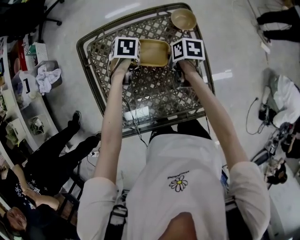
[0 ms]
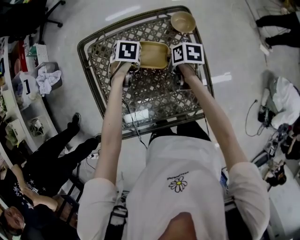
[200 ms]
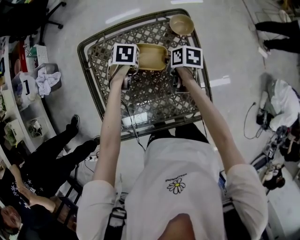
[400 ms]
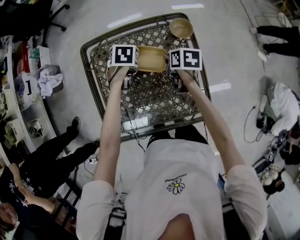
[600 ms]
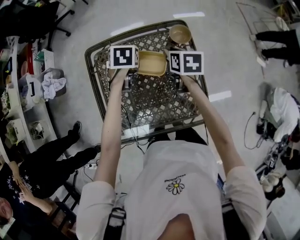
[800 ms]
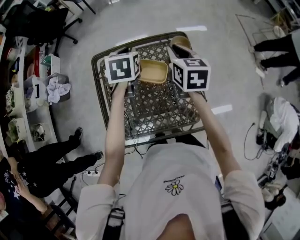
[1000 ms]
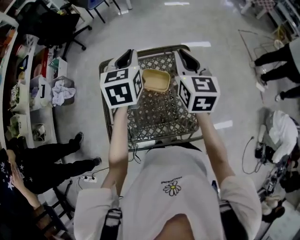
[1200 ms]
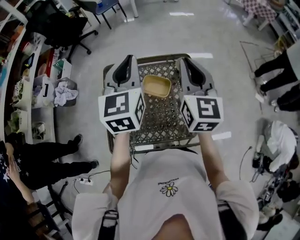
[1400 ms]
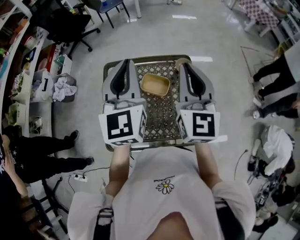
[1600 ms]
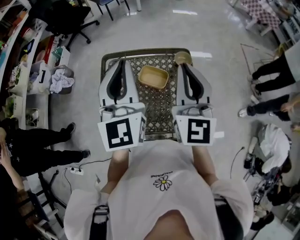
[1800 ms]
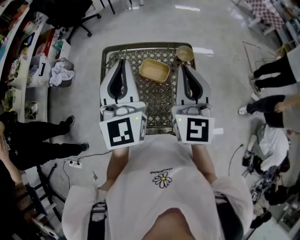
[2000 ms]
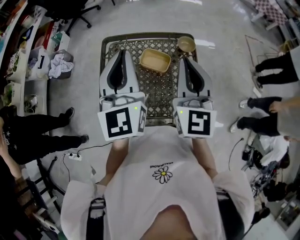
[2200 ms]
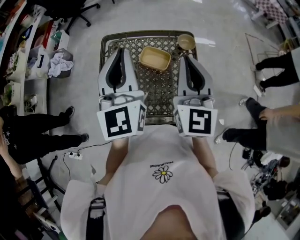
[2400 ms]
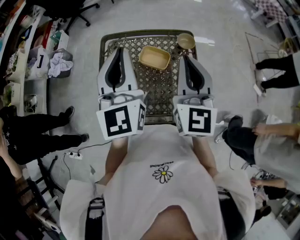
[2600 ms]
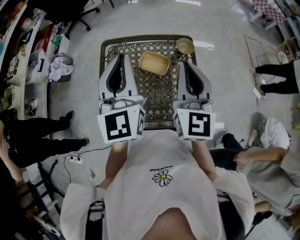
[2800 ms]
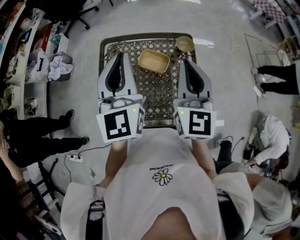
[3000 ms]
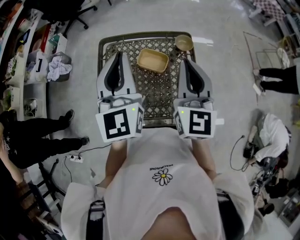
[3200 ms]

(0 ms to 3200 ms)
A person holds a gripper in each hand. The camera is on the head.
0 ms - 1600 ms: Both grippers travel together upward, about 50 cm. The left gripper tilts its fingers roughly 80 degrees upward. The right gripper tips its fingers upward by approximately 60 degrees.
1600 ms - 3200 ms: The right gripper shifts by some 5 cm. The left gripper shifts by about 5 cm.

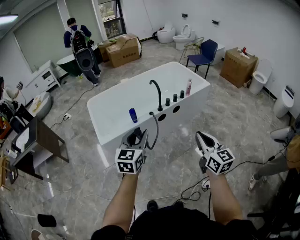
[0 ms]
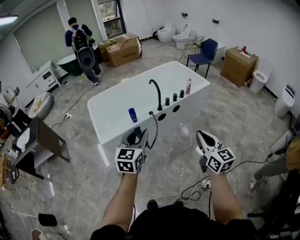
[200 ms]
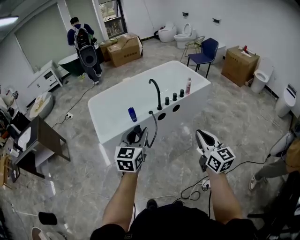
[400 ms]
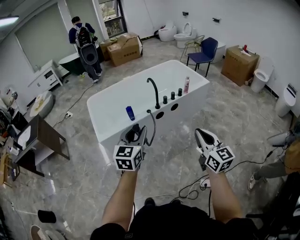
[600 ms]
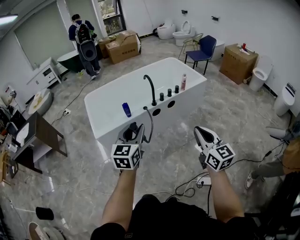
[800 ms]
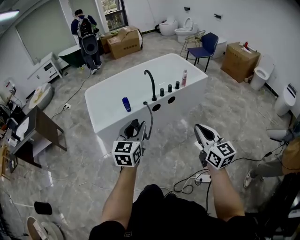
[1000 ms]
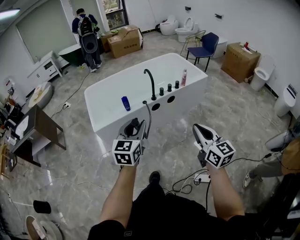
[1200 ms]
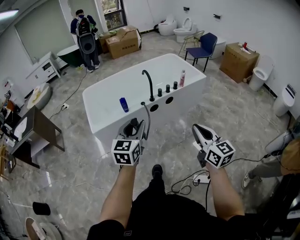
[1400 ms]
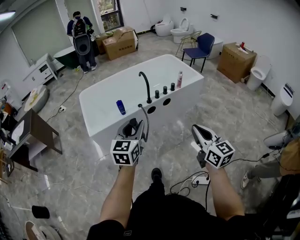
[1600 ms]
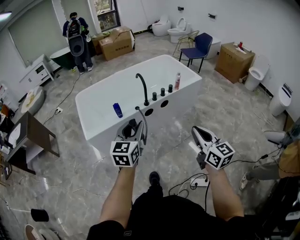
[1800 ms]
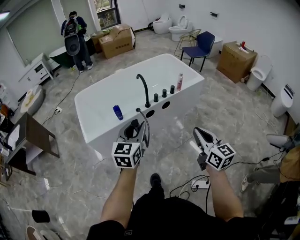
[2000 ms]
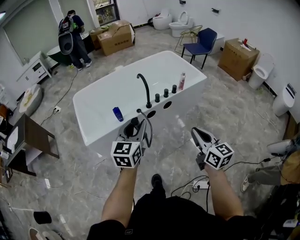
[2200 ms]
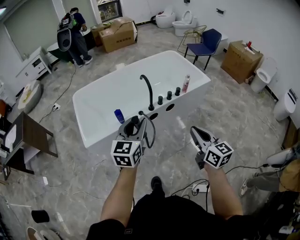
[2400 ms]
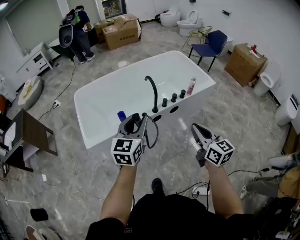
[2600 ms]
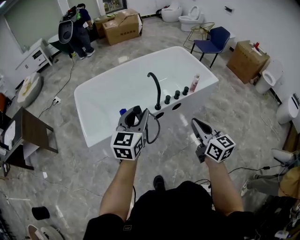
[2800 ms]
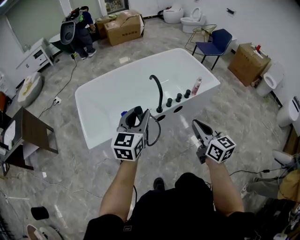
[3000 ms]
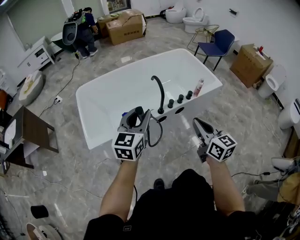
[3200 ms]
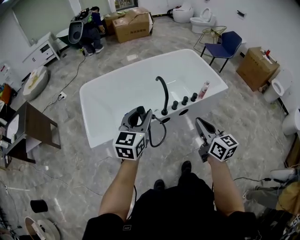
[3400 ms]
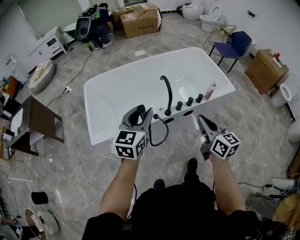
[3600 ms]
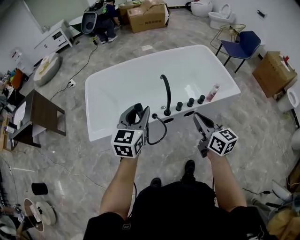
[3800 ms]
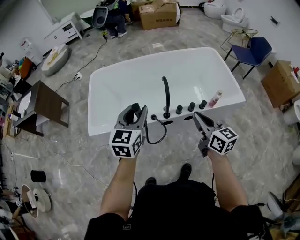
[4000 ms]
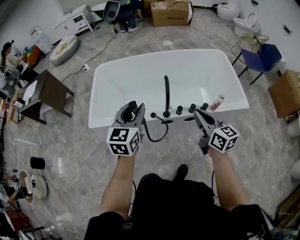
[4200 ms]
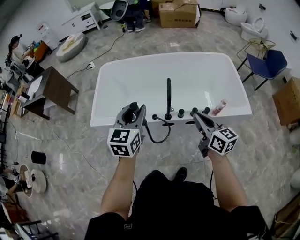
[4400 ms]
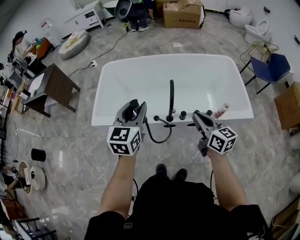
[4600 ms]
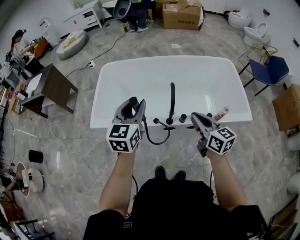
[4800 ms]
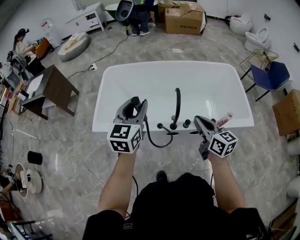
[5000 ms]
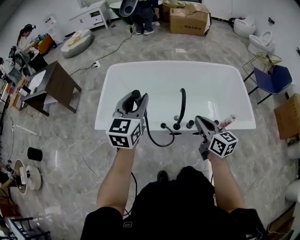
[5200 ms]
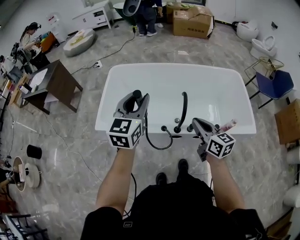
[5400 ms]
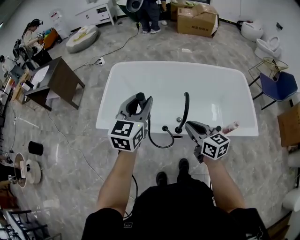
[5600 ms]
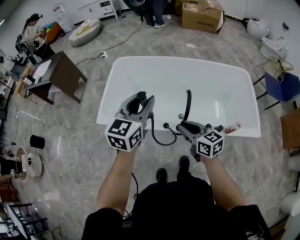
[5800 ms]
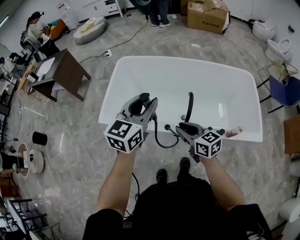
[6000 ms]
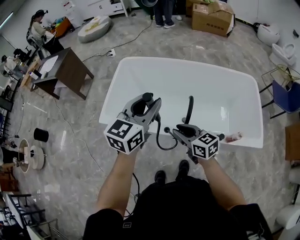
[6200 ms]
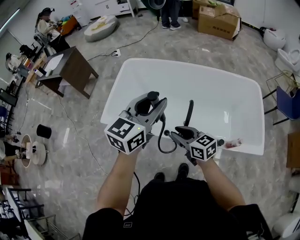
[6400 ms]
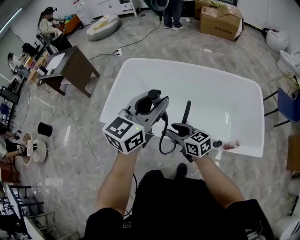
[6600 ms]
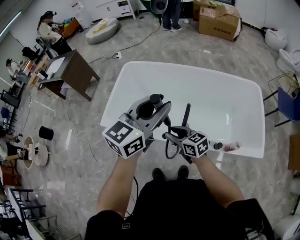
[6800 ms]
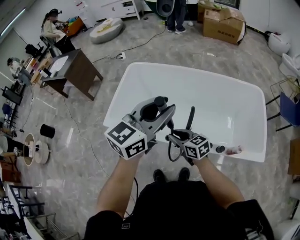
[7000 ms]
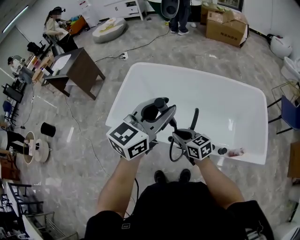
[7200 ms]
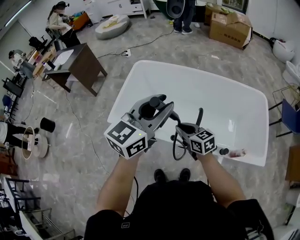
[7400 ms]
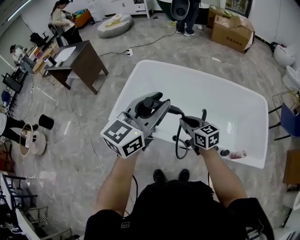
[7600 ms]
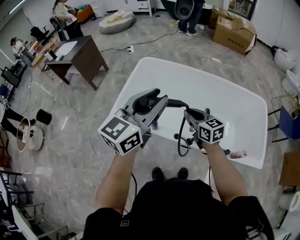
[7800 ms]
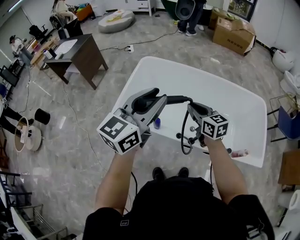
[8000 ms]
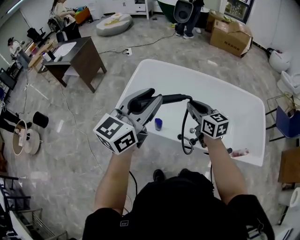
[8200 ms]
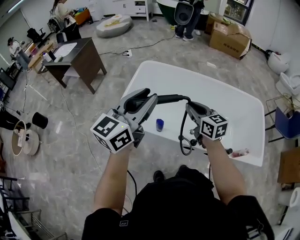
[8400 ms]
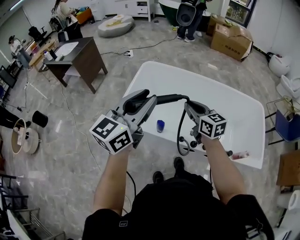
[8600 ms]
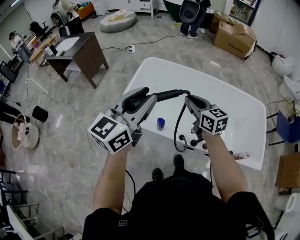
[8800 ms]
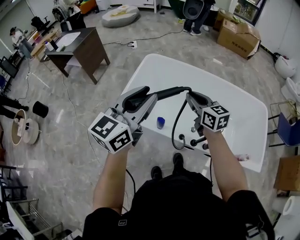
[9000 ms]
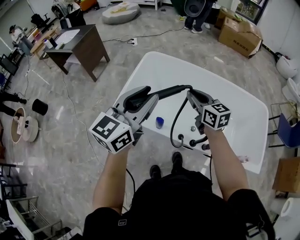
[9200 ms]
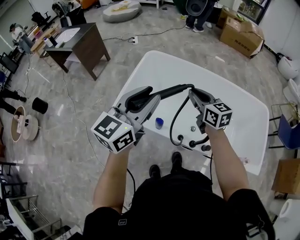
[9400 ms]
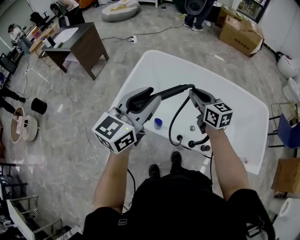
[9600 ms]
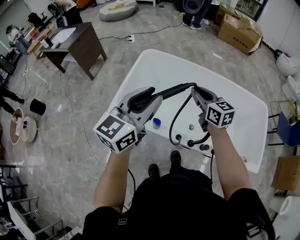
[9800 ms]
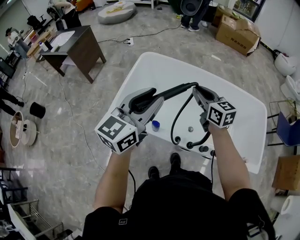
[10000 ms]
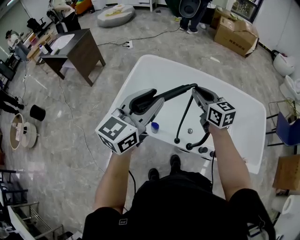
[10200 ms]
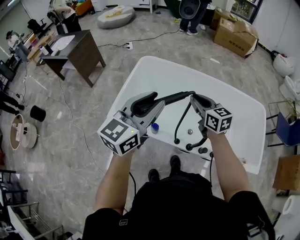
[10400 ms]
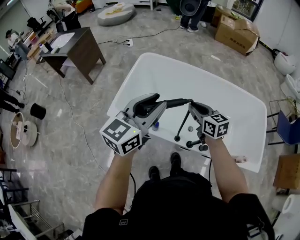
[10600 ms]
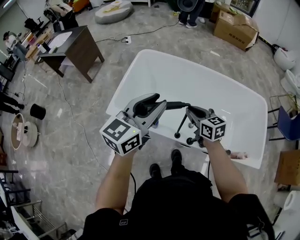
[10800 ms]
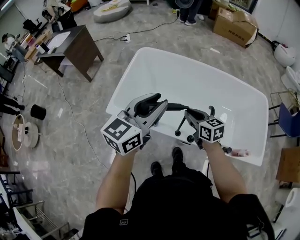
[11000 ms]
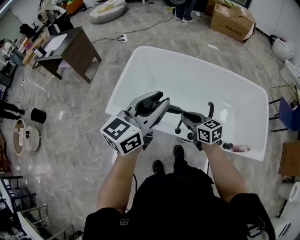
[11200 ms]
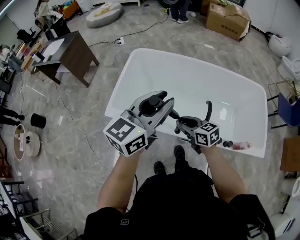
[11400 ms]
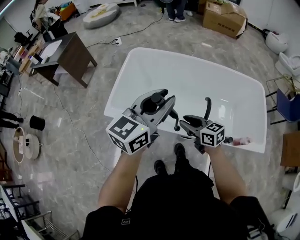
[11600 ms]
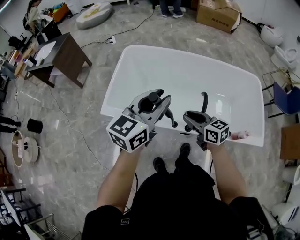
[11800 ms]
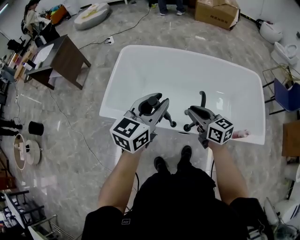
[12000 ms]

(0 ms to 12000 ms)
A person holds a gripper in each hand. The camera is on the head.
0 ms - 1600 ms: The grippers both shift to the right by roughly 5 cm.
1600 ms - 3000 ms: The two grippers go roughly 25 cm forward.
3000 ms - 4400 ms: The left gripper ends up roughly 10 cm from where it was, and turns by some 30 degrees, while the right gripper changes place by about 20 cm, and swivels approximately 30 degrees.
4400 ms - 6000 ms: The left gripper shifts approximately 10 cm forward. The right gripper heads to the left, forward and downward, covering approximately 15 cm, and rotates roughly 30 degrees.
6000 ms - 7600 ms: The left gripper shifts roughly 10 cm upward, and goes to the right and returns, about 10 cm each way; the right gripper shifts about 10 cm forward.
7600 ms - 9000 ms: The left gripper moves to the left, roughly 15 cm; the right gripper heads upward, forward and to the left, covering about 15 cm.
9000 ms - 10400 ms: The right gripper shifts by about 5 cm. The left gripper goes roughly 5 cm to the right.
10400 ms - 12000 ms: The right gripper is displaced backward and downward by roughly 15 cm. The left gripper goes about 10 cm downward and to the right.

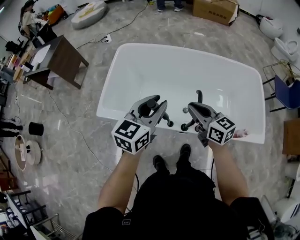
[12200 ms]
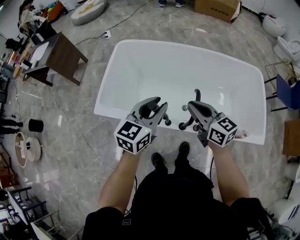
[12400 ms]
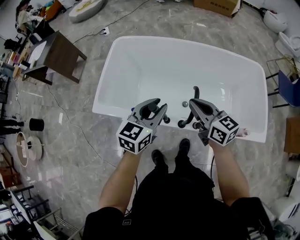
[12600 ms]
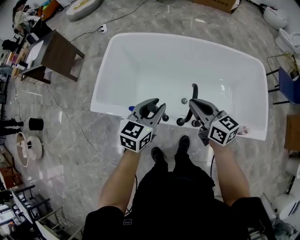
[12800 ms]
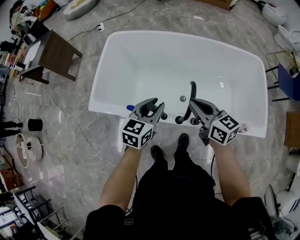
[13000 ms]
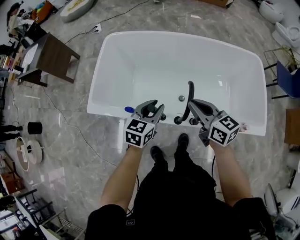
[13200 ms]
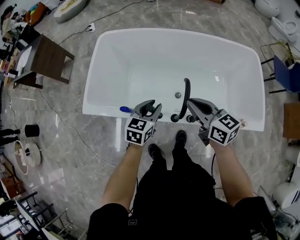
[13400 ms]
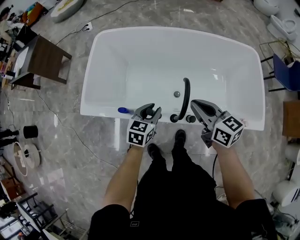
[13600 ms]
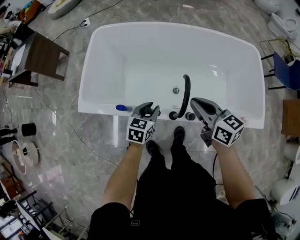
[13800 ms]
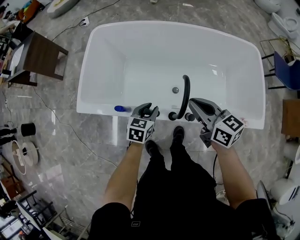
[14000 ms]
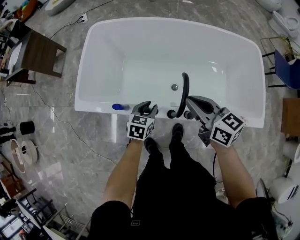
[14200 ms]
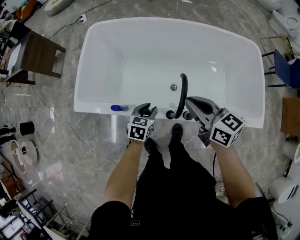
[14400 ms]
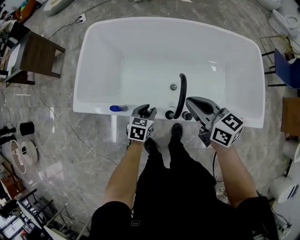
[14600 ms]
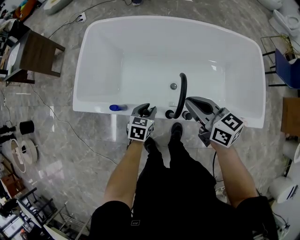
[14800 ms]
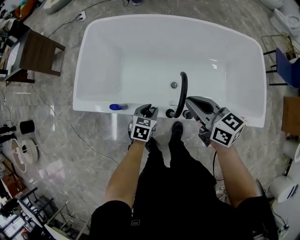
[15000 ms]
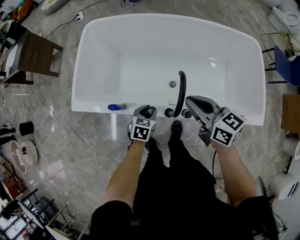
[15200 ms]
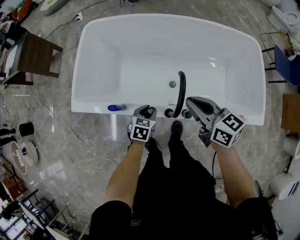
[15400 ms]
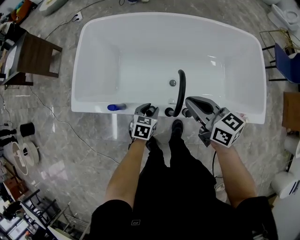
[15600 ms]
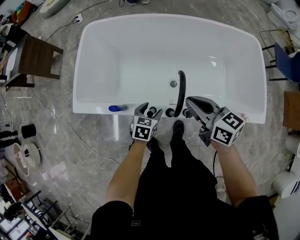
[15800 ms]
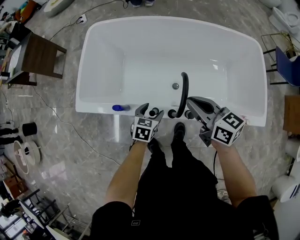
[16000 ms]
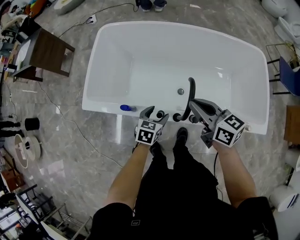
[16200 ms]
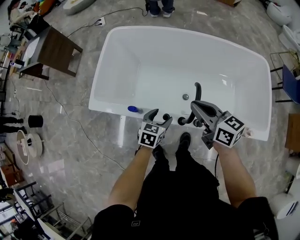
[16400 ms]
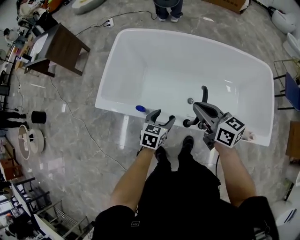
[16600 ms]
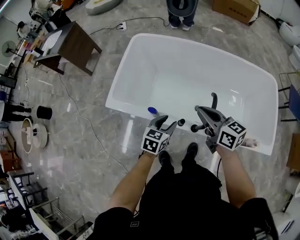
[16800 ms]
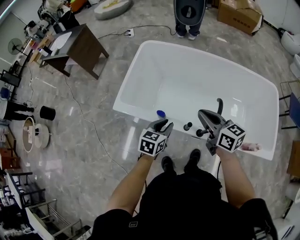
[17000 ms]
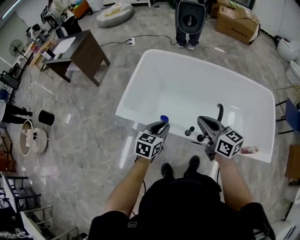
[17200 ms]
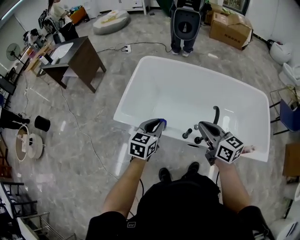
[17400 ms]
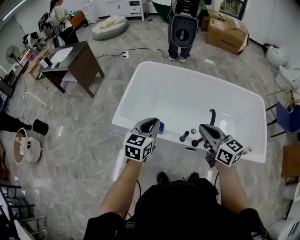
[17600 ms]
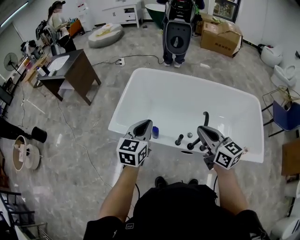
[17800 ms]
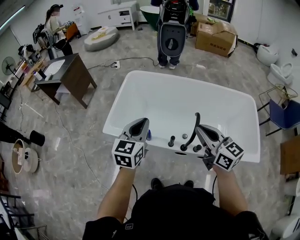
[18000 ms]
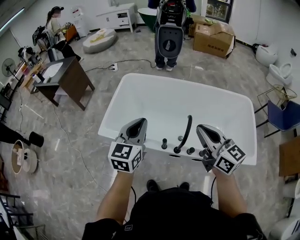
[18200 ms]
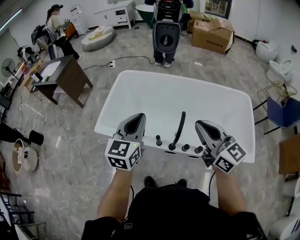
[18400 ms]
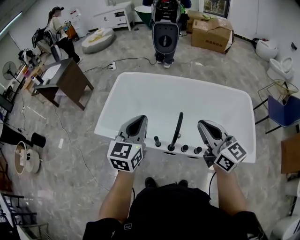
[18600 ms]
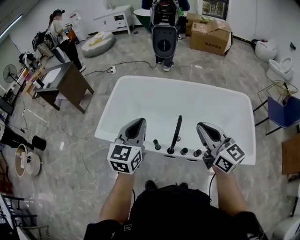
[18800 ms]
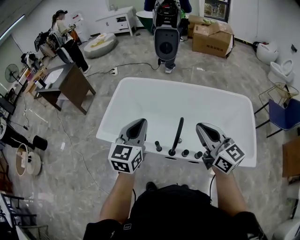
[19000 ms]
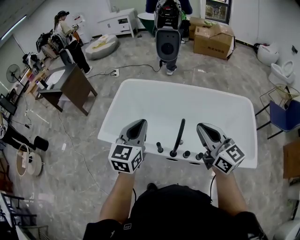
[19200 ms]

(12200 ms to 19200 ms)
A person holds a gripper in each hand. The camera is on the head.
12200 ms - 13600 ms: The left gripper is displaced downward by roughly 25 cm, and rotates approximately 20 degrees; the right gripper goes roughly 5 cm to the right.
13600 ms - 15000 ms: The left gripper shifts approximately 10 cm downward.
15000 ms - 16400 ms: The left gripper shifts by roughly 5 cm, and opens its fingers.
16400 ms - 17800 ms: The left gripper goes approximately 30 cm upward and to the left, changes its angle by roughly 30 degrees, and closes up, while the right gripper shifts roughly 15 cm upward, to the left and backward.
17800 ms - 19200 ms: The grippers both shift to the right and upward by roughly 15 cm.

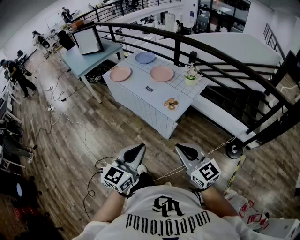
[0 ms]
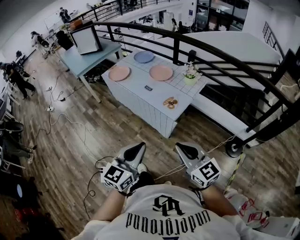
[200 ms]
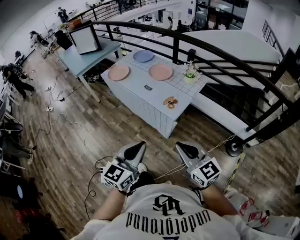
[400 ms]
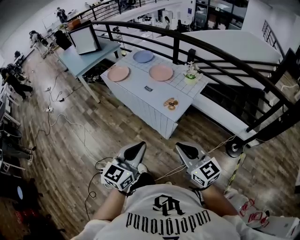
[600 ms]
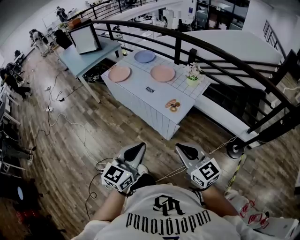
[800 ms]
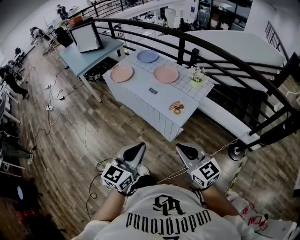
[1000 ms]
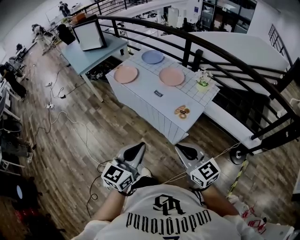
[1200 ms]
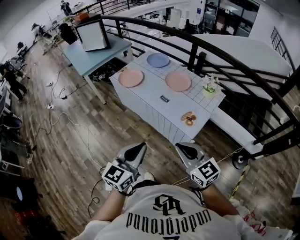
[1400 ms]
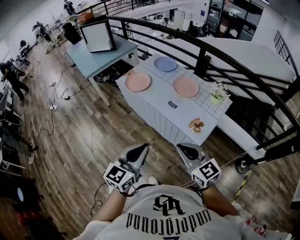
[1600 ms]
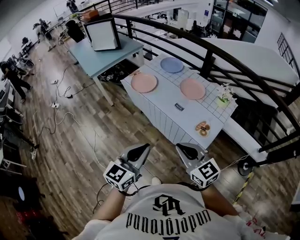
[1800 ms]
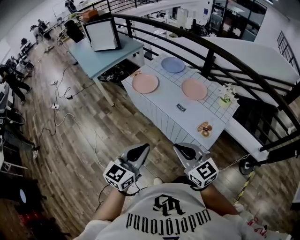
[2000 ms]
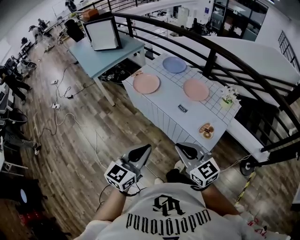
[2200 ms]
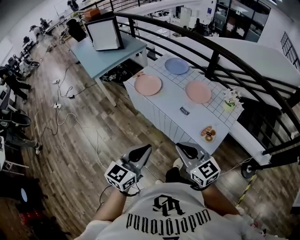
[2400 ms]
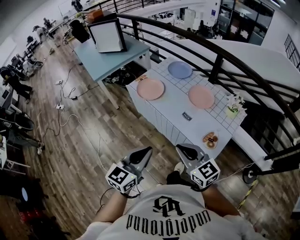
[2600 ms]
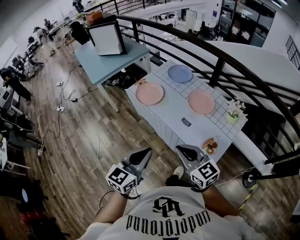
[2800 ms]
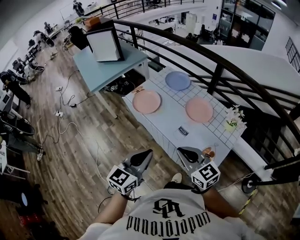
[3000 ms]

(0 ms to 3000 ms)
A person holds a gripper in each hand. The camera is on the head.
0 ms - 1600 ms: Both grippers travel together forward and to the left, about 30 cm.
1600 ms - 3000 ms: Both grippers move forward, some 20 cm.
